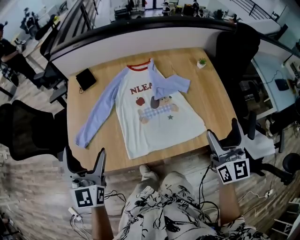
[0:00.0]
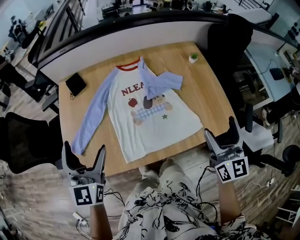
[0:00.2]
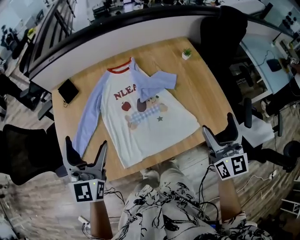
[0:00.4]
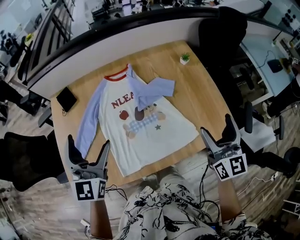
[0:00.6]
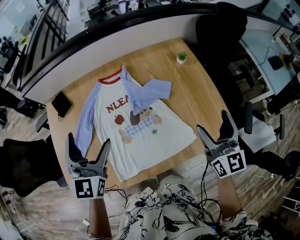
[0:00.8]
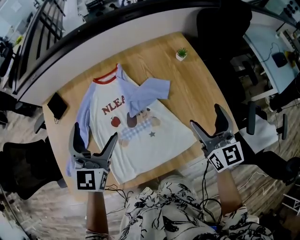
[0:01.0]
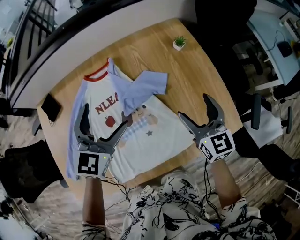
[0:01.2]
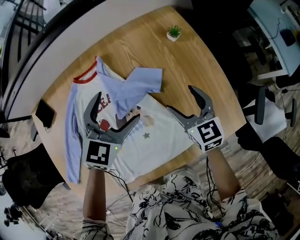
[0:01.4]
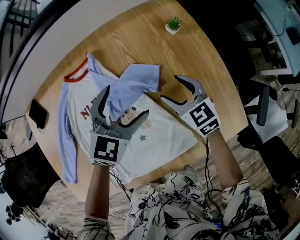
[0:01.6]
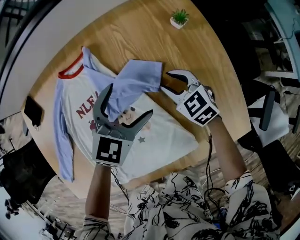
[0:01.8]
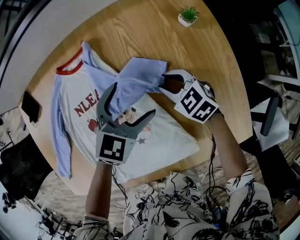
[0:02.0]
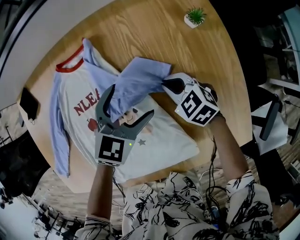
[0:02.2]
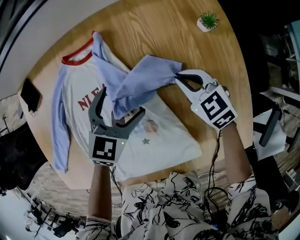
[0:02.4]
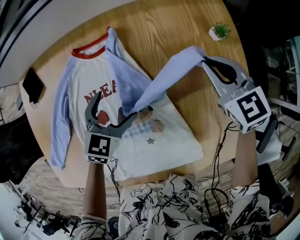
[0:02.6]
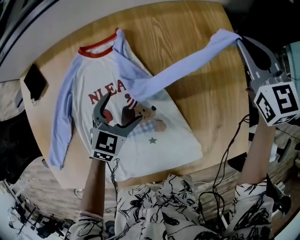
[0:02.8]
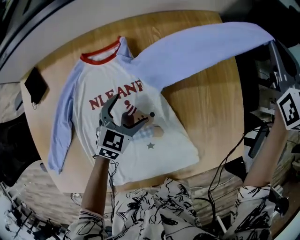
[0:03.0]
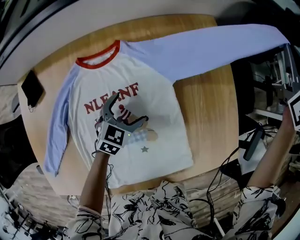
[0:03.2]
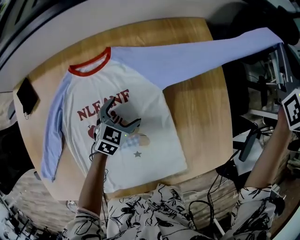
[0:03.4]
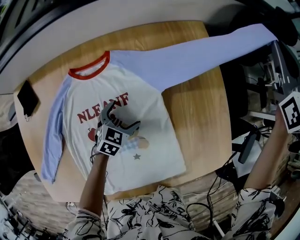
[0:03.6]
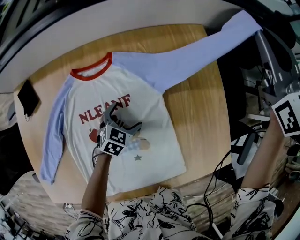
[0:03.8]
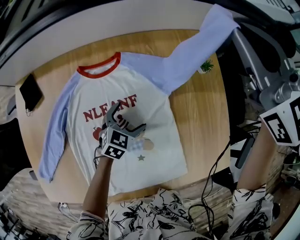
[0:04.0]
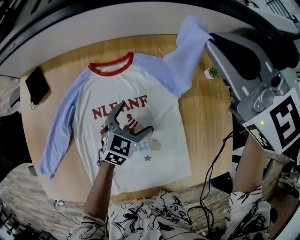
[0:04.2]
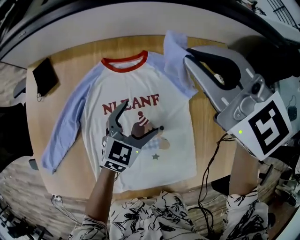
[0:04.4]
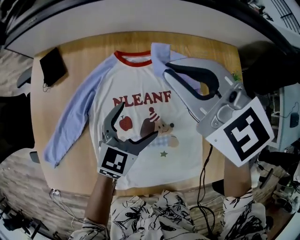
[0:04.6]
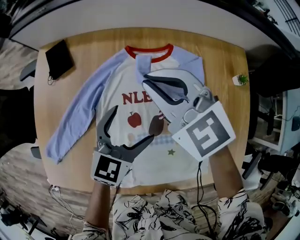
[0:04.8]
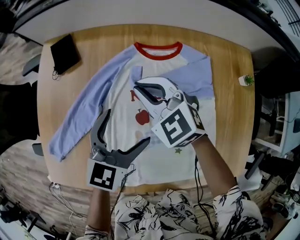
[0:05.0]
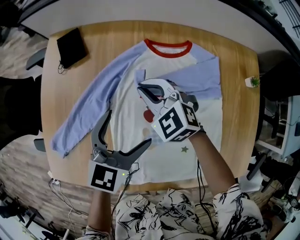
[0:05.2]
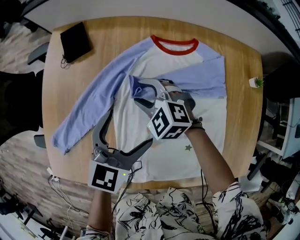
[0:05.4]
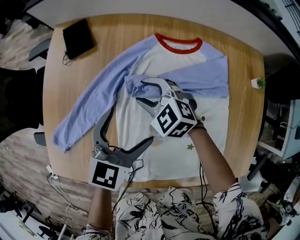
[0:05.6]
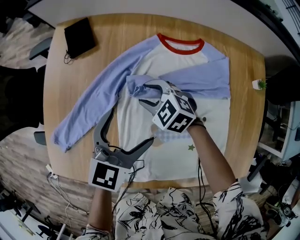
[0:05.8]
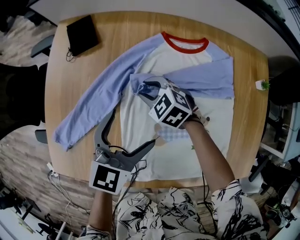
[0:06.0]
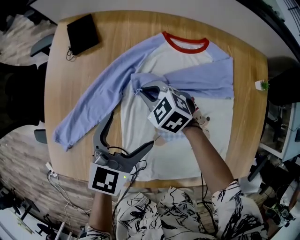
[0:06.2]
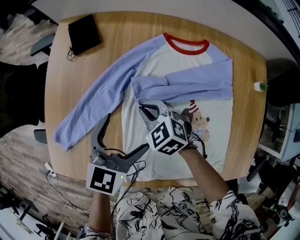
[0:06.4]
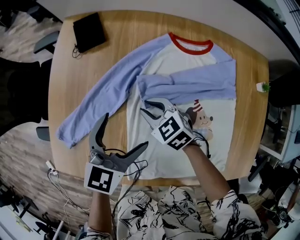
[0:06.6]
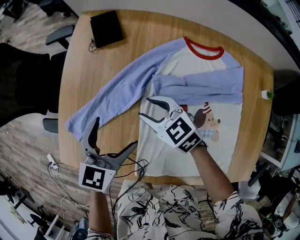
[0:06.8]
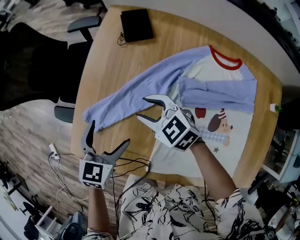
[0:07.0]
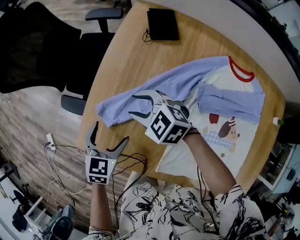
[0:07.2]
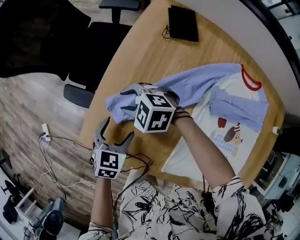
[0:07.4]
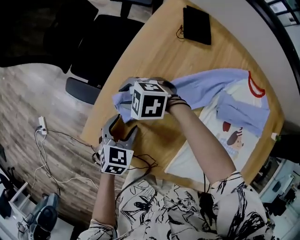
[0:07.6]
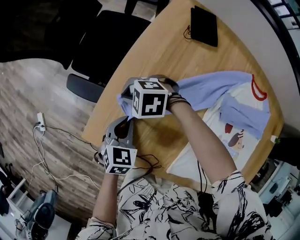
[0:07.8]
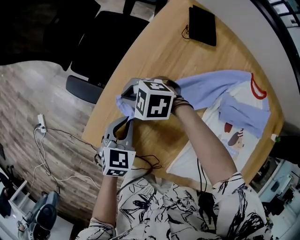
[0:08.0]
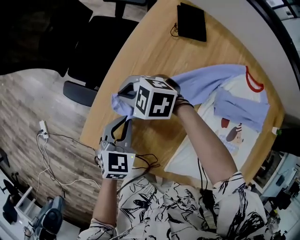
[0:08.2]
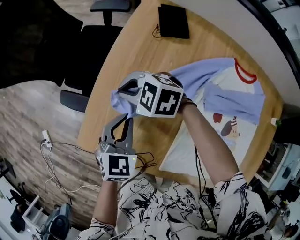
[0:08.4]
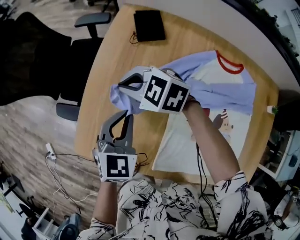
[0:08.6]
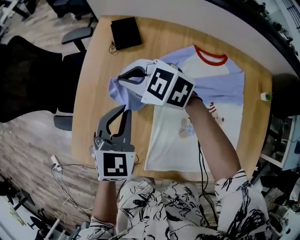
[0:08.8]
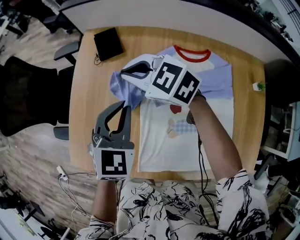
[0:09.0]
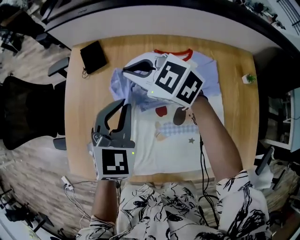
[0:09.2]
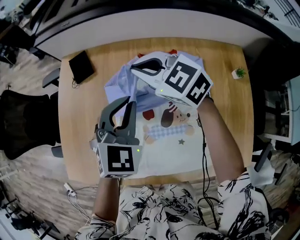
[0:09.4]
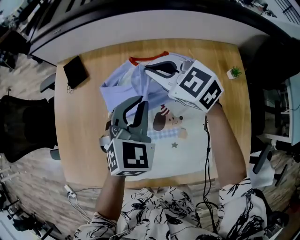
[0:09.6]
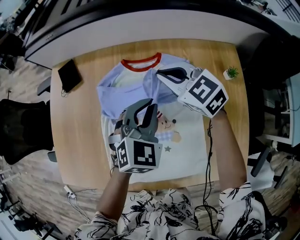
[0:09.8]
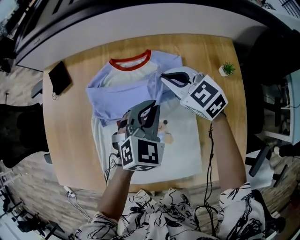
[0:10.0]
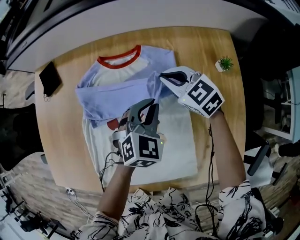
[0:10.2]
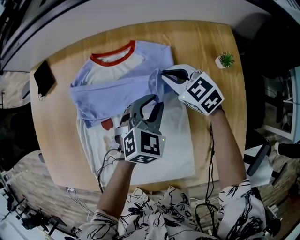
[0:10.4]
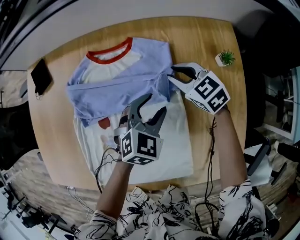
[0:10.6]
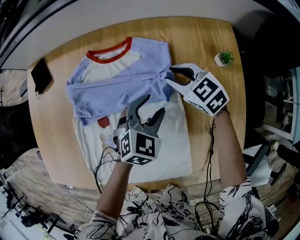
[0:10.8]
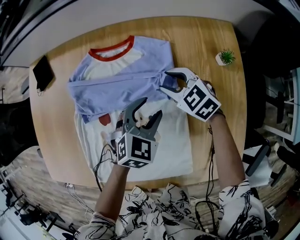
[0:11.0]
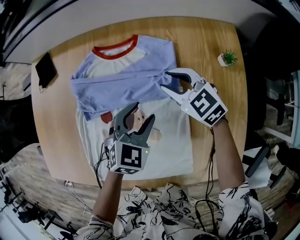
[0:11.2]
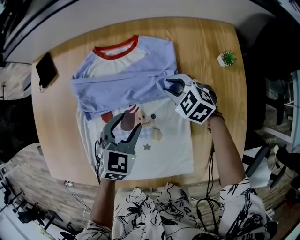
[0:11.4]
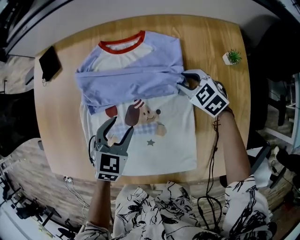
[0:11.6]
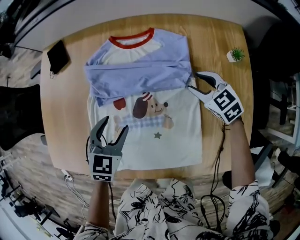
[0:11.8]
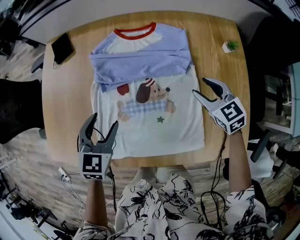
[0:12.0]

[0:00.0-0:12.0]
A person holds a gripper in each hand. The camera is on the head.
0:00.0 to 0:01.6: The right gripper travels forward and downward by approximately 40 cm, and points its fingers some 30 degrees further downward. The left gripper travels forward, to the right and downward by some 60 cm, and changes its angle by roughly 60 degrees.
0:01.6 to 0:03.0: The left gripper travels downward and to the left by approximately 15 cm. The right gripper is displaced upward and forward by approximately 30 cm, swivels roughly 30 degrees, and closes up.
0:03.0 to 0:04.4: The right gripper travels to the left by approximately 30 cm, and changes its angle by about 40 degrees. Meanwhile the left gripper goes roughly 5 cm upward.
0:04.4 to 0:06.0: The right gripper goes roughly 40 cm downward and to the left, and turns by approximately 30 degrees, while the left gripper heads to the left, covering some 25 cm.
0:06.0 to 0:07.6: The left gripper changes place by approximately 40 cm, turns by roughly 40 degrees, and closes its fingers; the right gripper travels upward and back again, about 10 cm each way, and swivels about 50 degrees.
0:07.6 to 0:09.0: The left gripper ends up roughly 40 cm from where it was, swivels roughly 30 degrees, and closes, while the right gripper moves about 40 cm, and turns by approximately 50 degrees.
0:09.0 to 0:10.4: The two grippers travel together, some 40 cm. The left gripper swivels approximately 30 degrees. Meanwhile the right gripper rotates about 30 degrees.
0:10.4 to 0:12.0: The left gripper heads to the left and backward, covering some 30 cm, rotates some 20 degrees, and opens its fingers. The right gripper is displaced backward by about 15 cm, and opens its fingers.

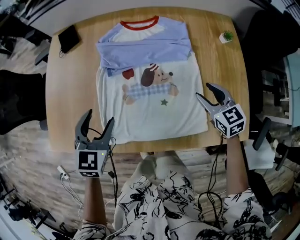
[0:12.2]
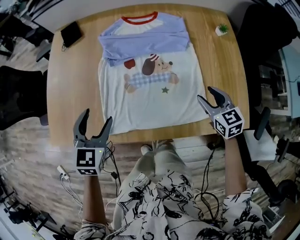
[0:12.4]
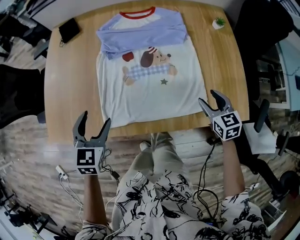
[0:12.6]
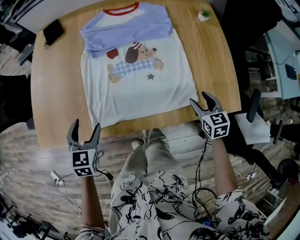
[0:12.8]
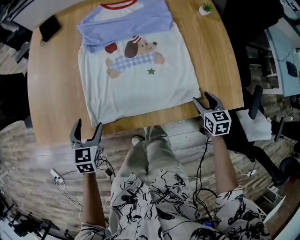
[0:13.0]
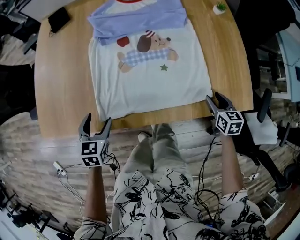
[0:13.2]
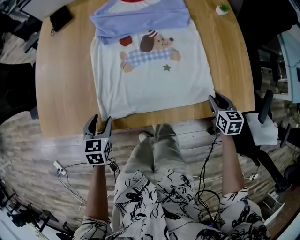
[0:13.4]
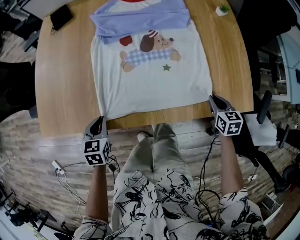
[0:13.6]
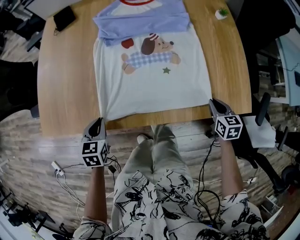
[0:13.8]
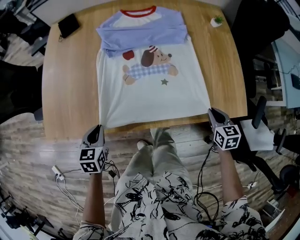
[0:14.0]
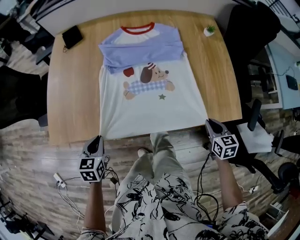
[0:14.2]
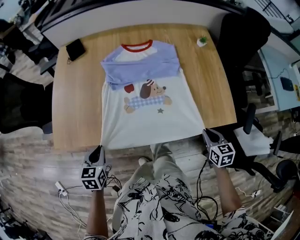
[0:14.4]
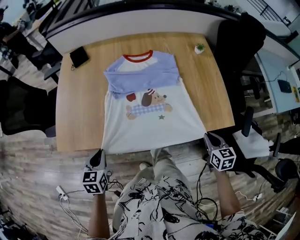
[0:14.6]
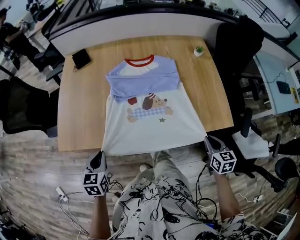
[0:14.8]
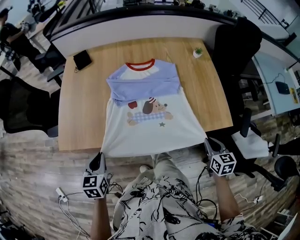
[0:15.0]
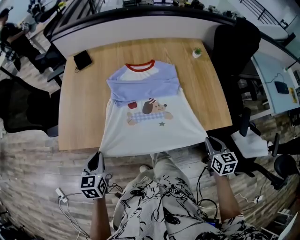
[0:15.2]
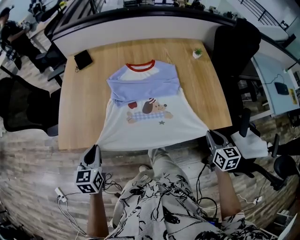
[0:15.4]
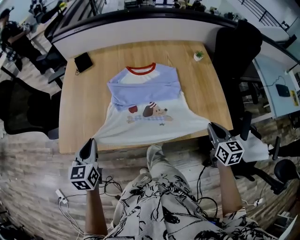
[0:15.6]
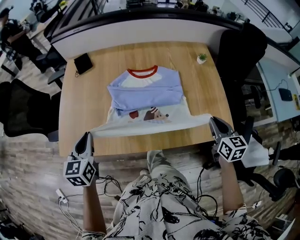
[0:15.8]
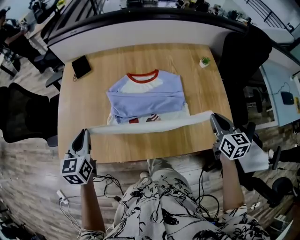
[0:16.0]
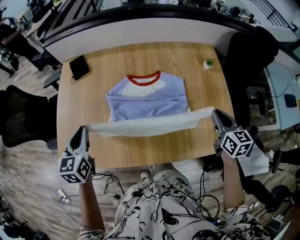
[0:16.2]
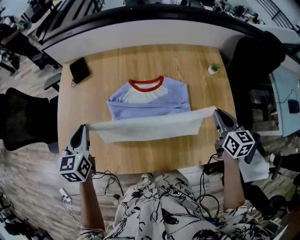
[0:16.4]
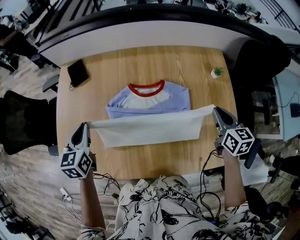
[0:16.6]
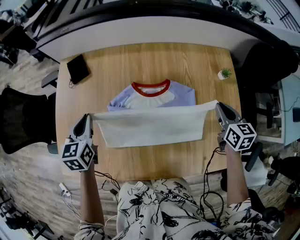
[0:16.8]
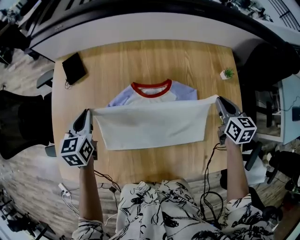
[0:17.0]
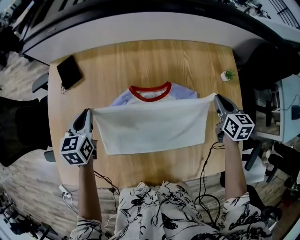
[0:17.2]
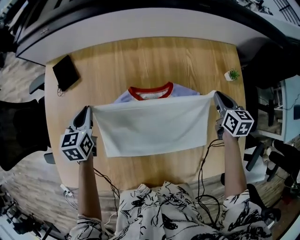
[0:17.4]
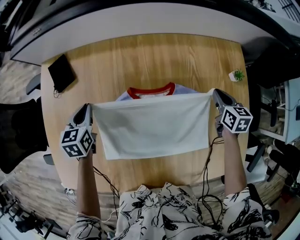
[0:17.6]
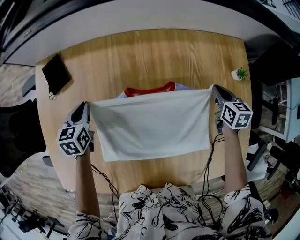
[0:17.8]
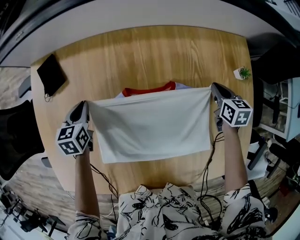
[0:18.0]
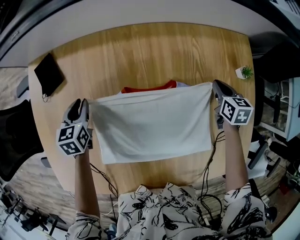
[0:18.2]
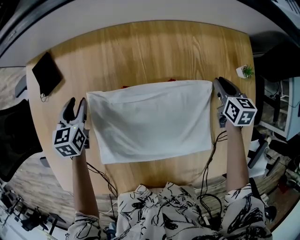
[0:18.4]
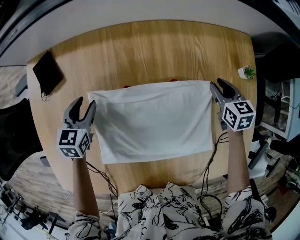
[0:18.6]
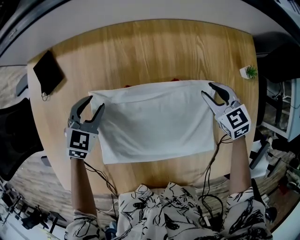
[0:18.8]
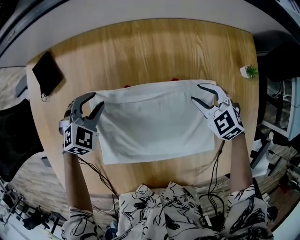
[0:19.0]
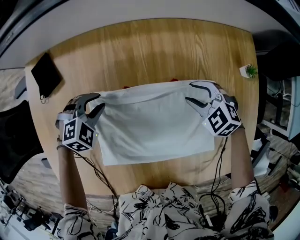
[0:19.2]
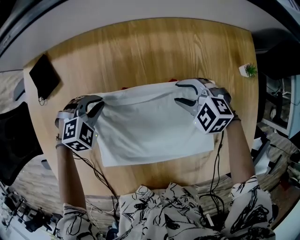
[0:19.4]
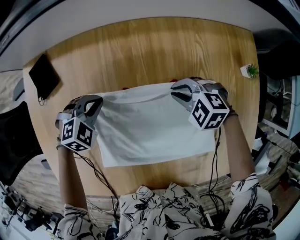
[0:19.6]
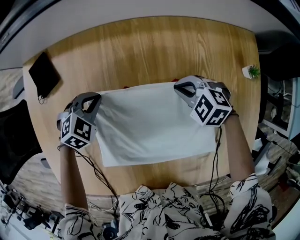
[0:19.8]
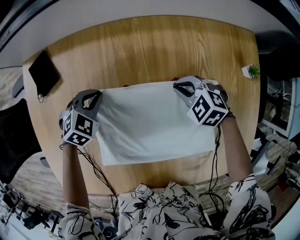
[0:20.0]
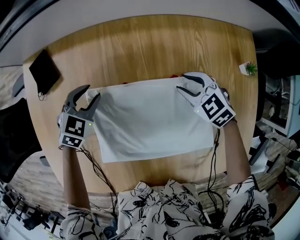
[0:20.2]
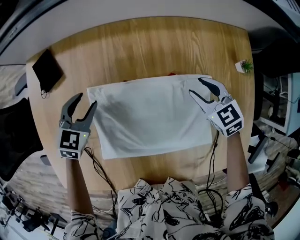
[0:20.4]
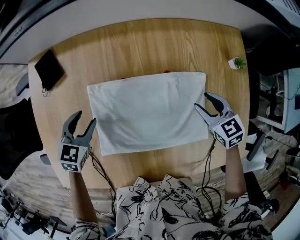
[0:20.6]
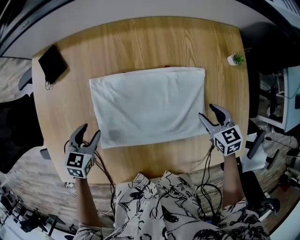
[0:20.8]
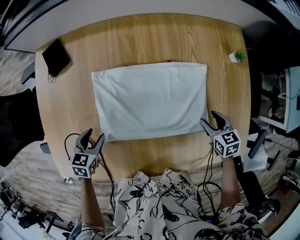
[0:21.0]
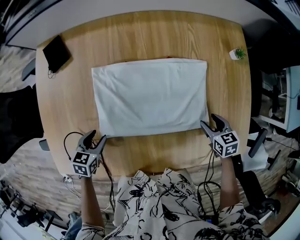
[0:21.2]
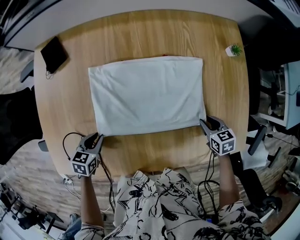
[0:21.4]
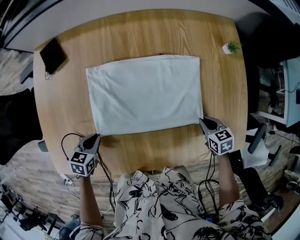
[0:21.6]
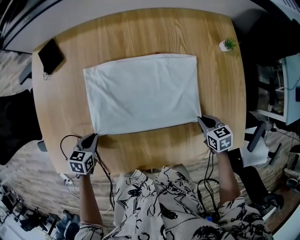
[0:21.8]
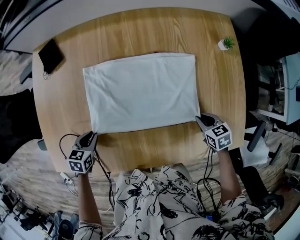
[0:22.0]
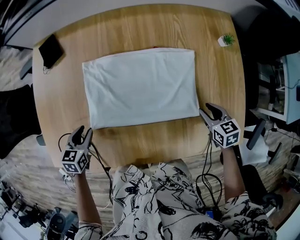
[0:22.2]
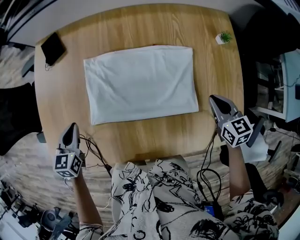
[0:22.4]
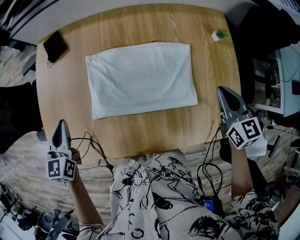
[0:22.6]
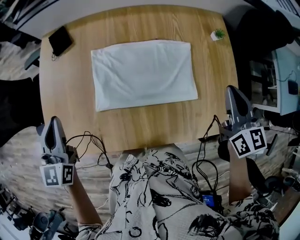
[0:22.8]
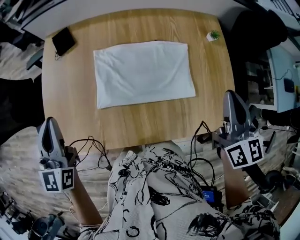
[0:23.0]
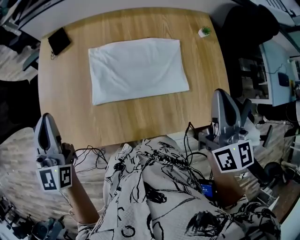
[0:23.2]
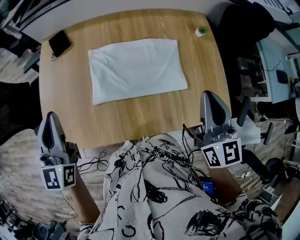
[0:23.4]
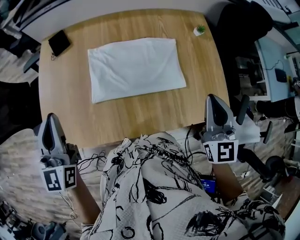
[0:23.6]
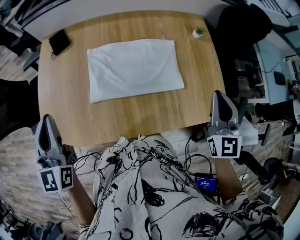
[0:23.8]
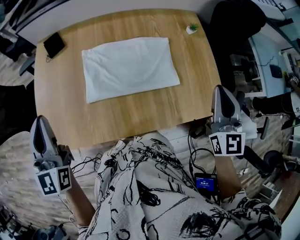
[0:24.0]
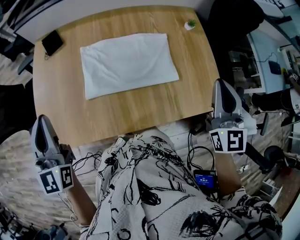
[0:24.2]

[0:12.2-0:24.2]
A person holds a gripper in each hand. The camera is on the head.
0:12.2 to 0:13.8: The left gripper moves downward, backward and to the left, about 25 cm, swivels about 20 degrees, and closes up. The right gripper is displaced backward and downward by approximately 20 cm, rotates some 30 degrees, and closes its fingers.
0:13.8 to 0:15.2: Both grippers move upward and backward, some 20 cm.
0:15.2 to 0:16.6: The two grippers go some 35 cm forward.
0:16.6 to 0:18.2: The grippers both shift downward and forward by approximately 30 cm.
0:18.2 to 0:19.8: The left gripper goes roughly 10 cm to the right, and rotates around the line of its fingers by approximately 50 degrees, clockwise from behind; the right gripper heads to the left, covering approximately 20 cm, rolls counterclockwise, seen from behind, by some 60 degrees, and opens, then closes again.
0:19.8 to 0:21.2: The right gripper travels backward and to the right by about 30 cm, twists approximately 60 degrees clockwise, seen from behind, and opens up, while the left gripper heads backward, covering some 25 cm, rotates around the line of its fingers by approximately 50 degrees, counterclockwise from behind, and opens its fingers.
0:21.2 to 0:22.6: Both grippers move upward, some 20 cm. The left gripper swivels about 40 degrees, and closes up; the right gripper rotates some 30 degrees, and closes its fingers.
0:22.6 to 0:24.2: The left gripper shifts some 20 cm upward and backward, and swivels some 20 degrees, while the right gripper swings up and down, about 15 cm each way, with 2 reversals, and changes its angle by about 30 degrees.
